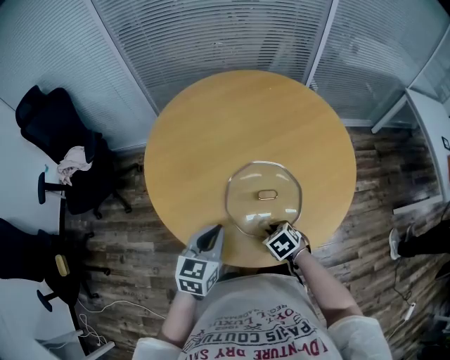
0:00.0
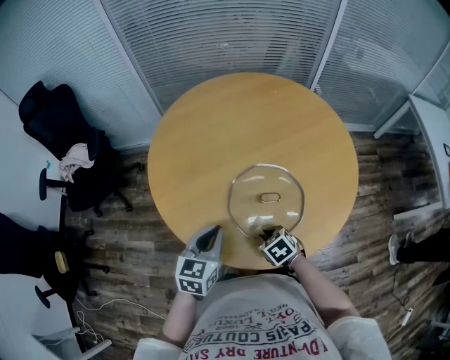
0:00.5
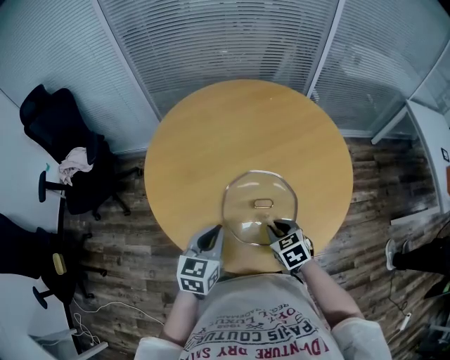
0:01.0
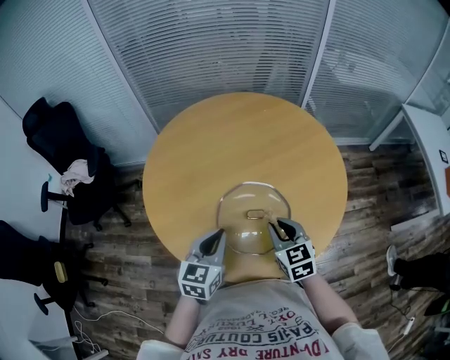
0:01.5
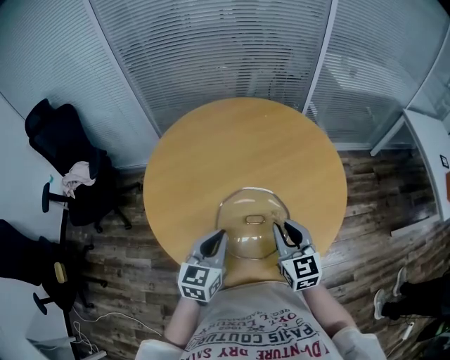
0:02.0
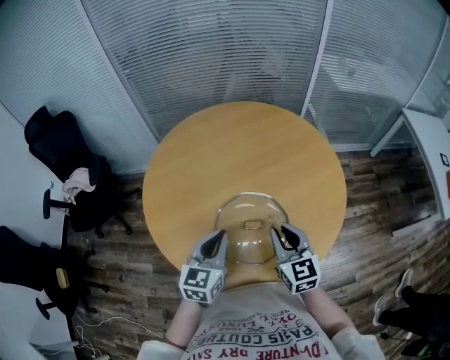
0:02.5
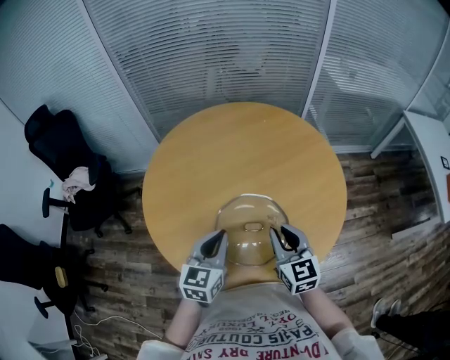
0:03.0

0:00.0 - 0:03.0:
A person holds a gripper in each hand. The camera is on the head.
0:00.0 - 0:01.5: The left gripper shifts by roughly 5 cm; the right gripper shifts approximately 15 cm upward, and points its fingers roughly 40 degrees further upward.
0:01.5 - 0:03.0: The right gripper moves upward, about 5 cm.

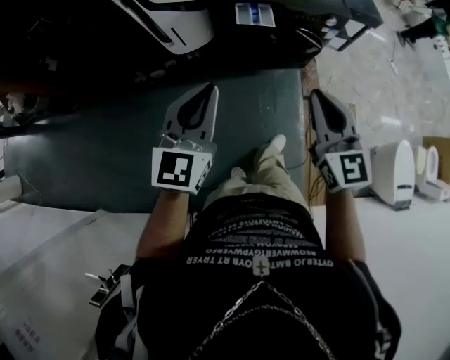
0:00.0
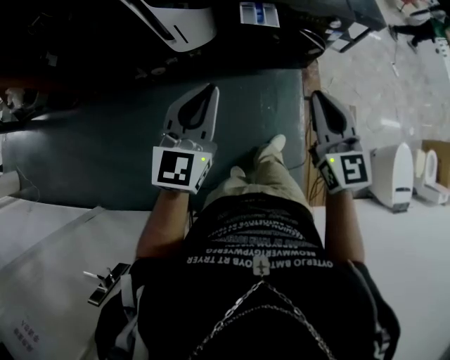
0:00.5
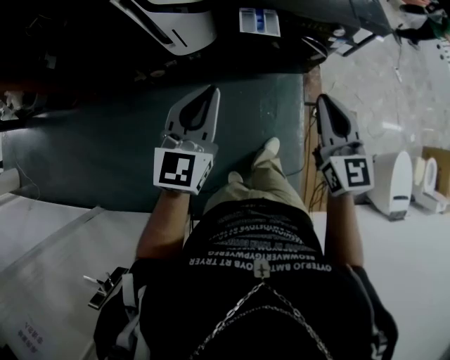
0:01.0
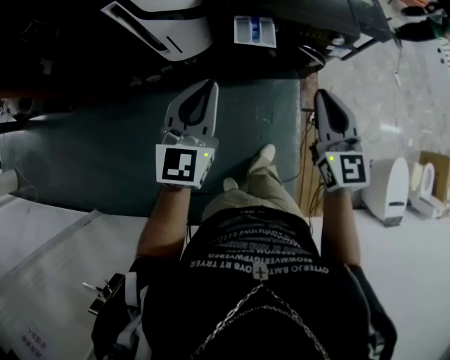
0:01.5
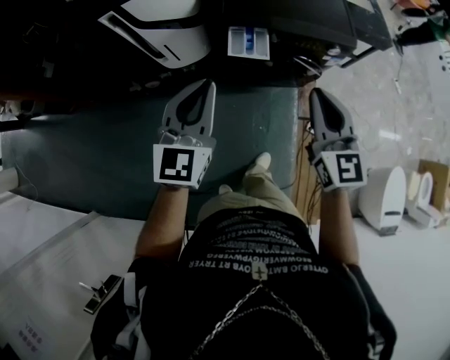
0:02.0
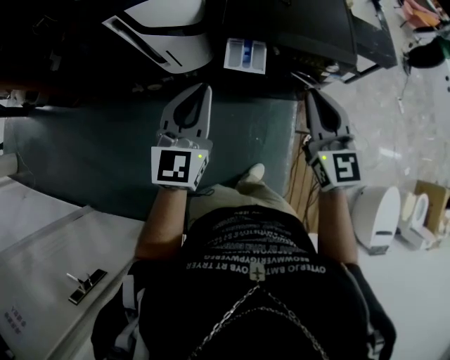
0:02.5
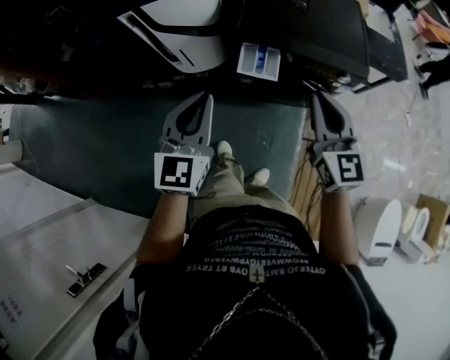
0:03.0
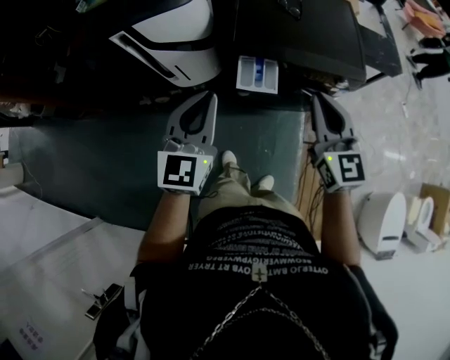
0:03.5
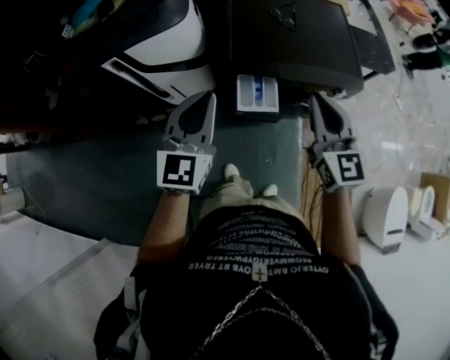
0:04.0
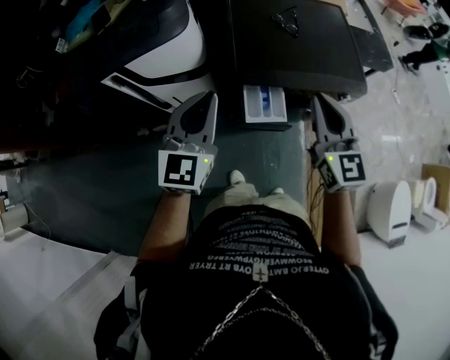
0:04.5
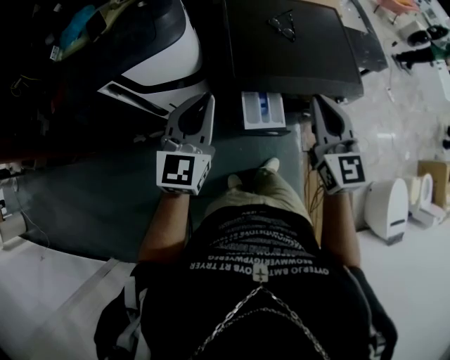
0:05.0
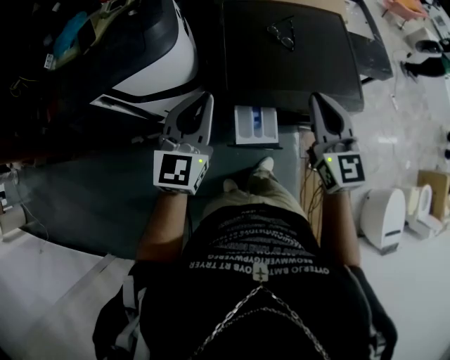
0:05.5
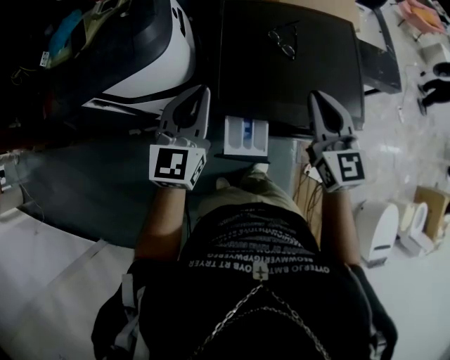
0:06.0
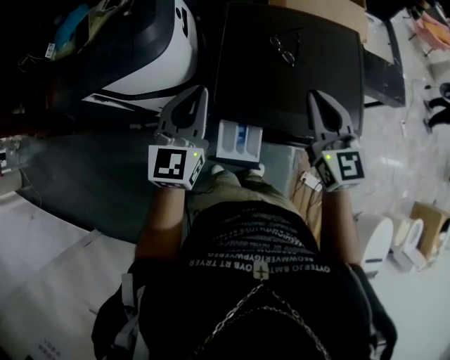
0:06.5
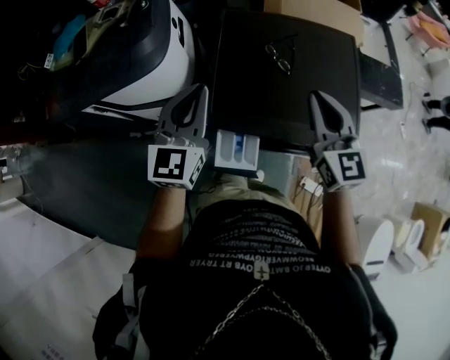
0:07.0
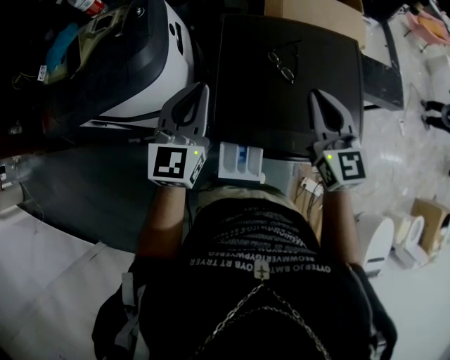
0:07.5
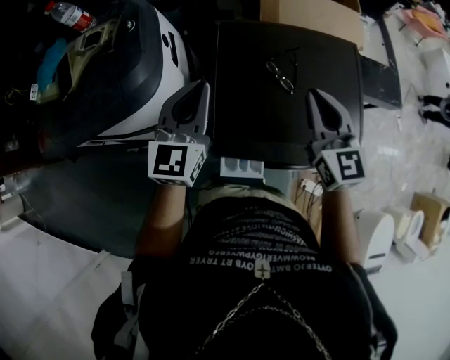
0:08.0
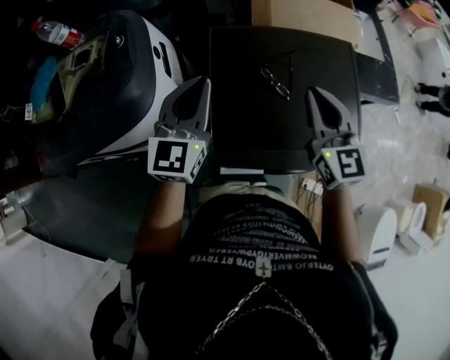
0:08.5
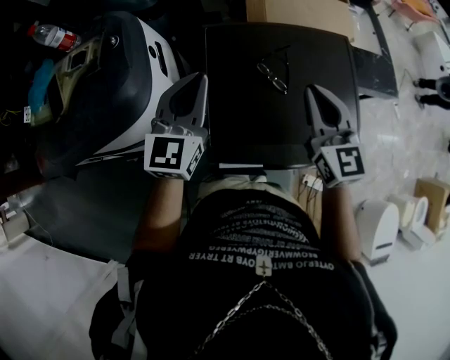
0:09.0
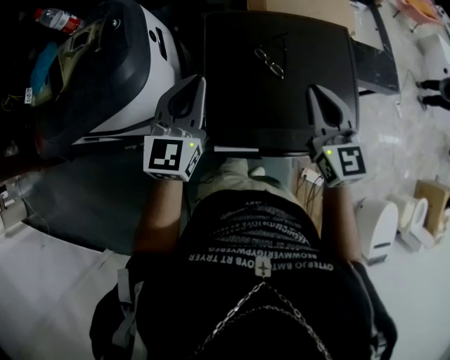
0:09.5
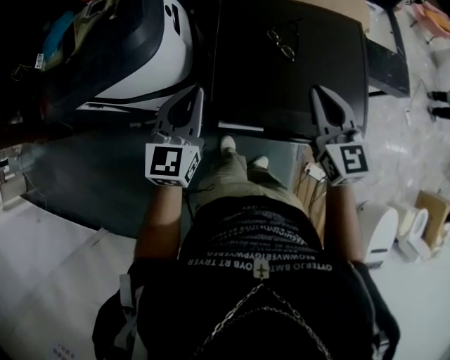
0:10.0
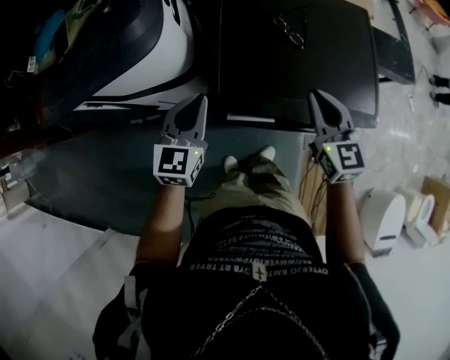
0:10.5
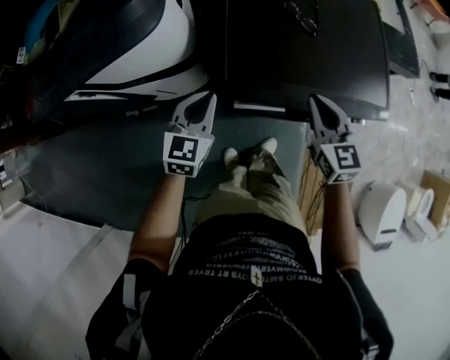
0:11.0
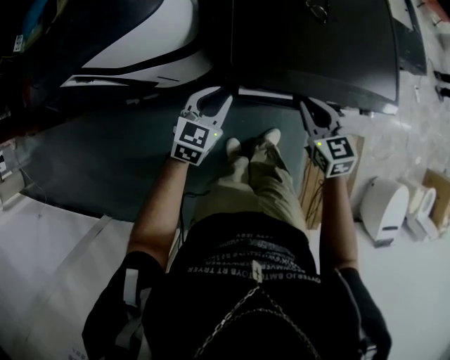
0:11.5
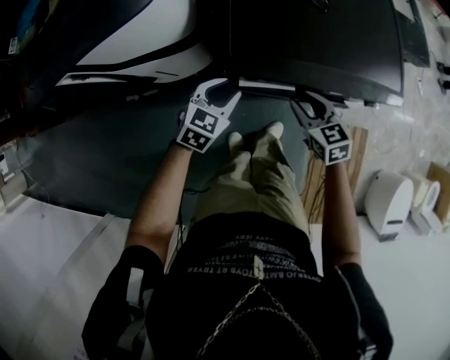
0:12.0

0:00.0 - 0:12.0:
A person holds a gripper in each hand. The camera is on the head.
0:00.0 - 0:02.0: Both grippers travel together forward, roughly 20 cm.
0:02.0 - 0:04.0: The grippers both shift forward by approximately 20 cm.
0:04.0 - 0:06.0: Both grippers move forward, some 20 cm.
0:06.0 - 0:08.0: Both grippers travel together forward, roughly 15 cm.
0:08.0 - 0:10.0: Both grippers travel together backward, approximately 10 cm.
0:10.0 - 0:12.0: The right gripper moves downward and backward, approximately 30 cm, rotates approximately 30 degrees, and opens, while the left gripper heads downward, covering roughly 25 cm, turns by some 40 degrees, and opens up.

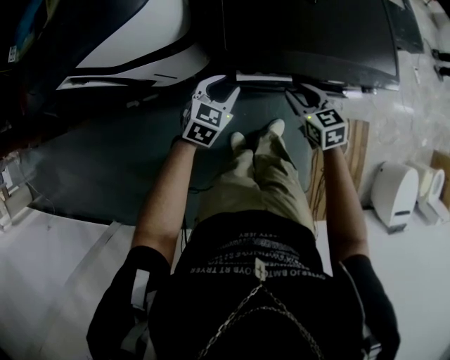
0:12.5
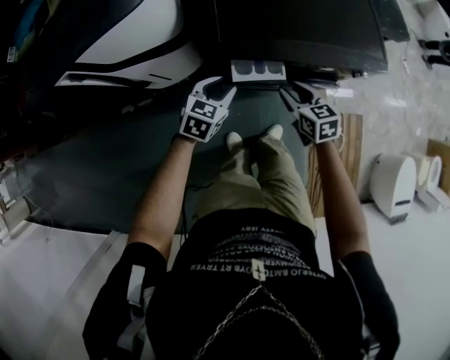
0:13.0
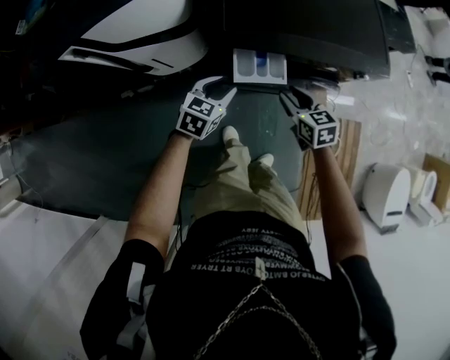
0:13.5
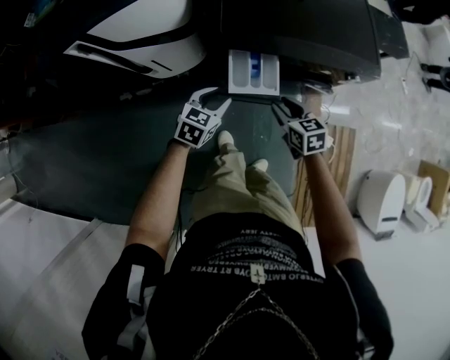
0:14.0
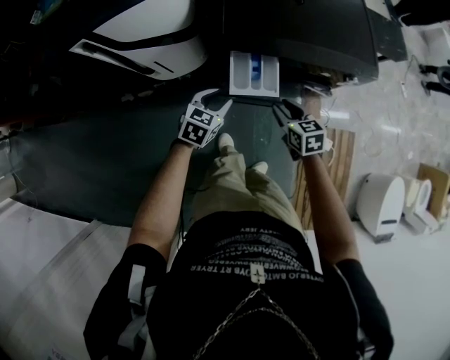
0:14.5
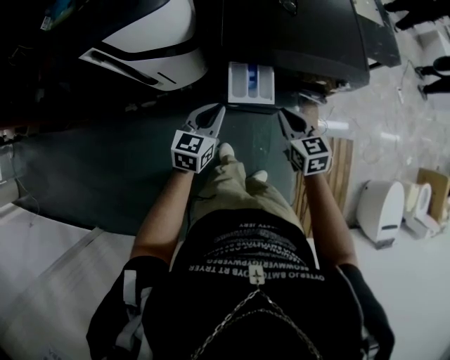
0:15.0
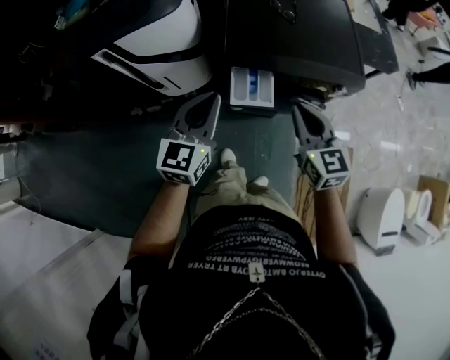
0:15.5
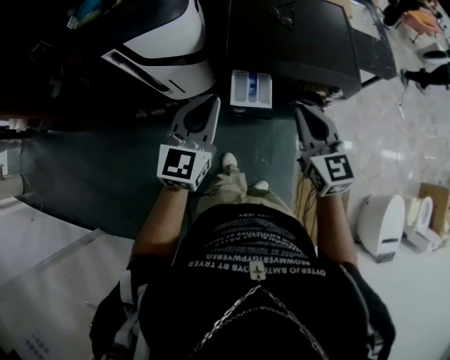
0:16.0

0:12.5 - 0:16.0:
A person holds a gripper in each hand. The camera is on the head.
0:12.5 - 0:14.5: The grippers both shift backward by about 10 cm.
0:14.5 - 0:16.0: The grippers both shift upward by about 30 cm. The right gripper rotates roughly 30 degrees, and closes its fingers, while the left gripper tilts its fingers approximately 30 degrees upward, and closes its fingers.

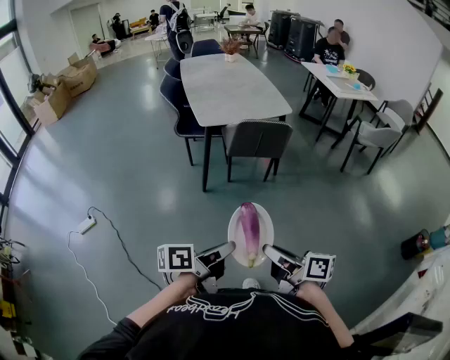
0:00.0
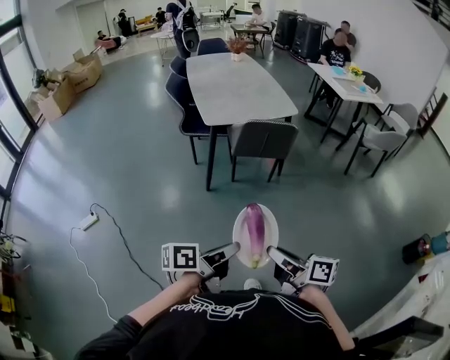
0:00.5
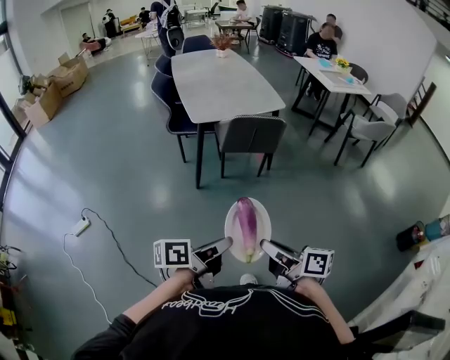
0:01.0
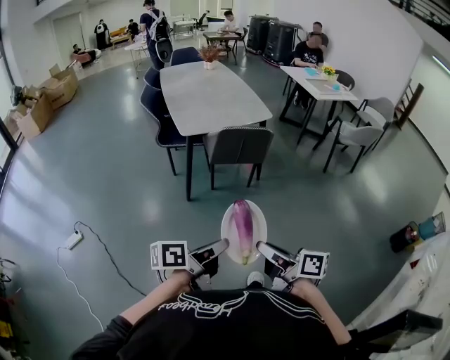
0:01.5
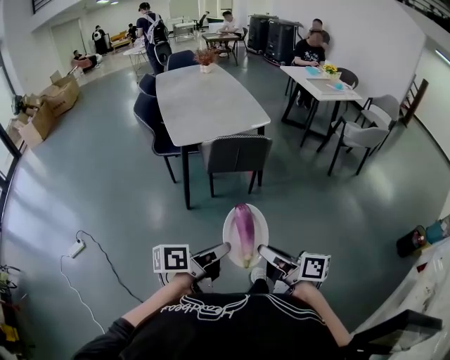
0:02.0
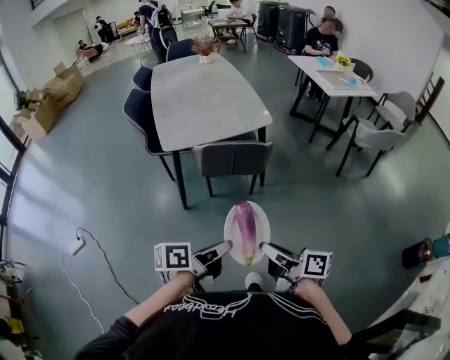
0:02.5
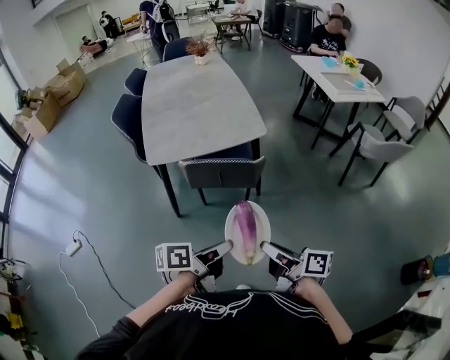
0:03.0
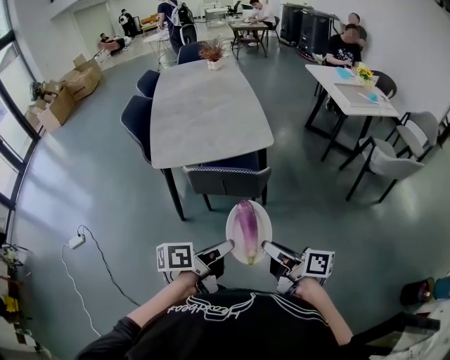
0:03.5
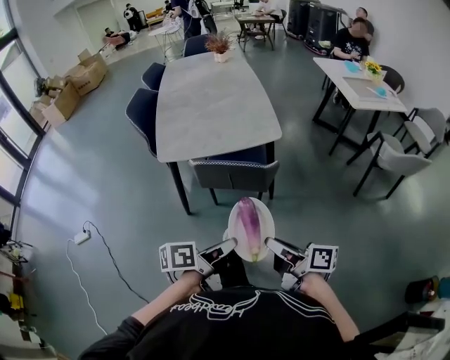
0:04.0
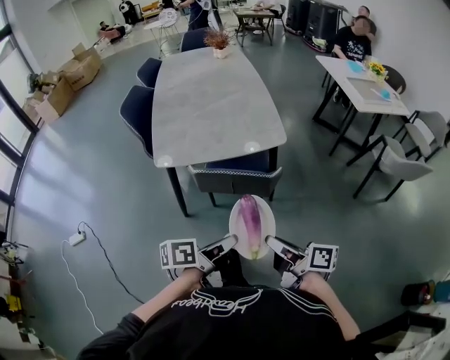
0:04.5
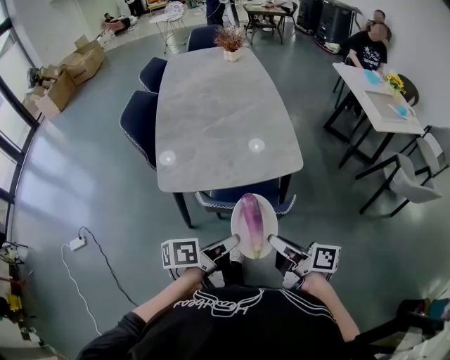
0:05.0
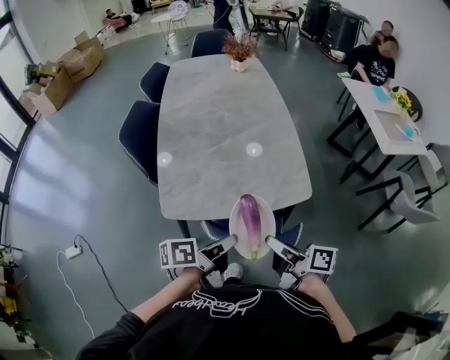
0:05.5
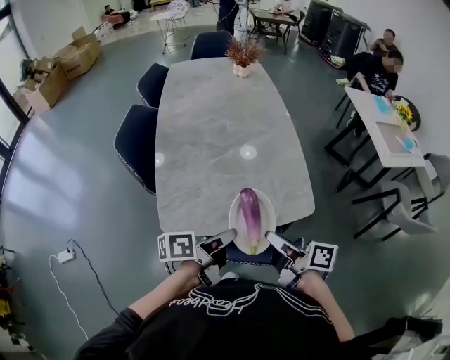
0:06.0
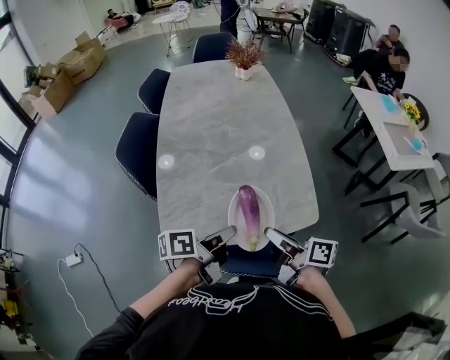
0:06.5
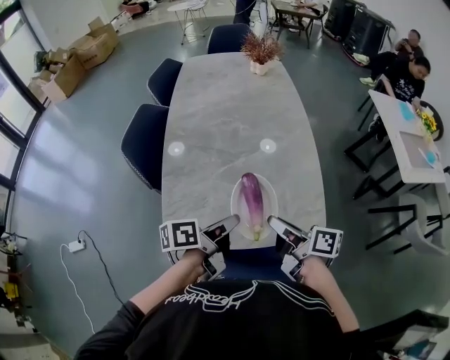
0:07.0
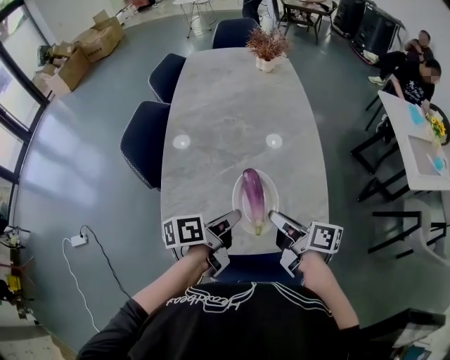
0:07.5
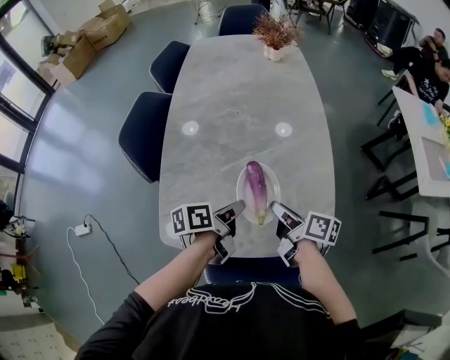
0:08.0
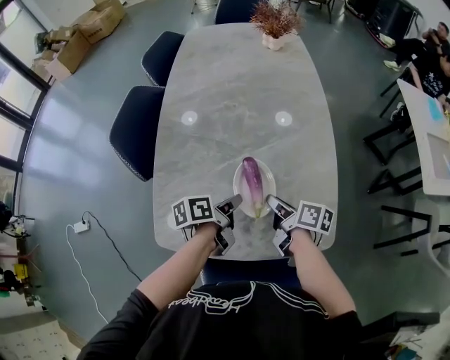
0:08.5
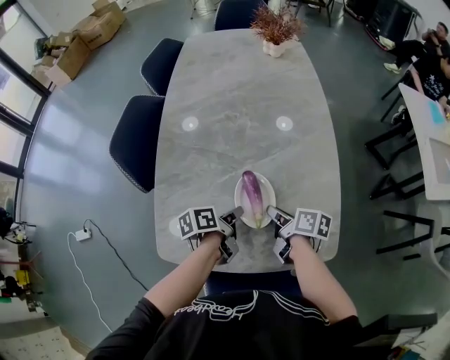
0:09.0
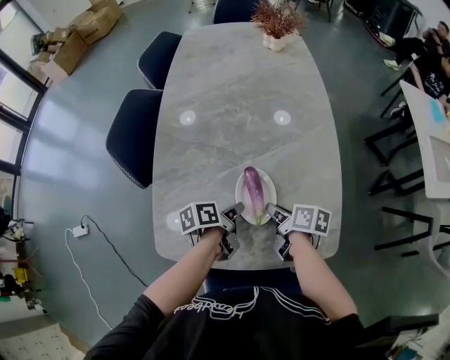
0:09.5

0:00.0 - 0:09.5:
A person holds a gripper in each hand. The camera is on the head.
0:00.0 - 0:02.0: Both grippers travel together forward and to the right, some 10 cm.
0:02.0 - 0:04.0: Both grippers travel together forward and to the right, approximately 35 cm.
0:04.0 - 0:05.5: Both grippers move forward, about 35 cm.
0:05.5 - 0:07.5: The two grippers go roughly 25 cm forward.
0:07.5 - 0:09.5: The two grippers go some 20 cm downward and forward. The right gripper turns by about 30 degrees.
